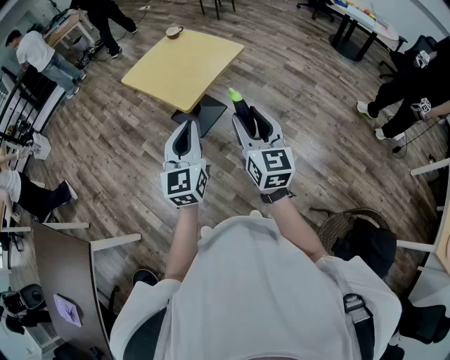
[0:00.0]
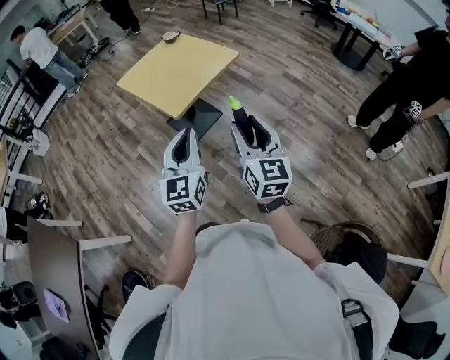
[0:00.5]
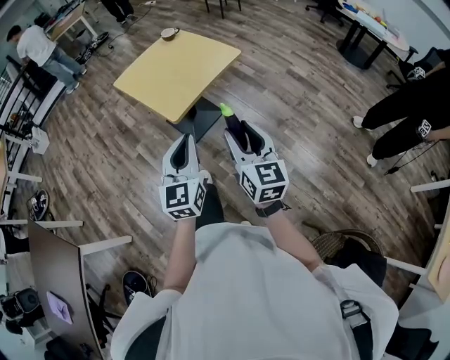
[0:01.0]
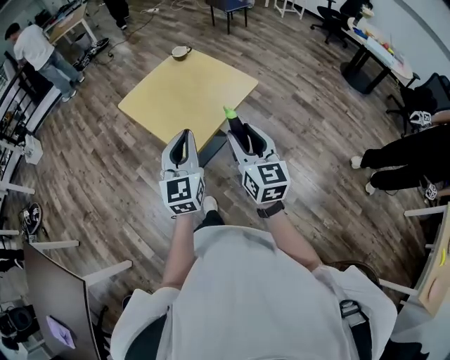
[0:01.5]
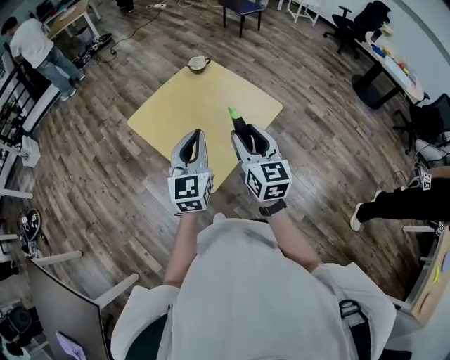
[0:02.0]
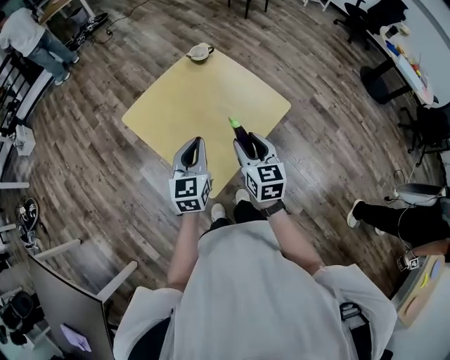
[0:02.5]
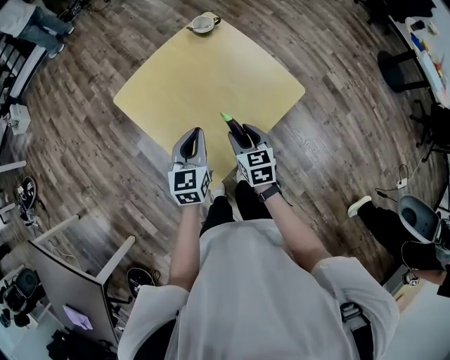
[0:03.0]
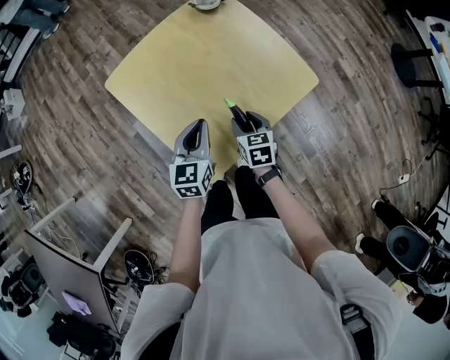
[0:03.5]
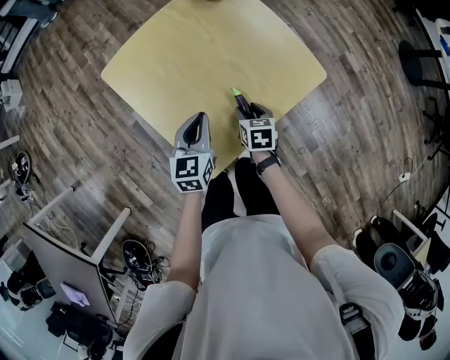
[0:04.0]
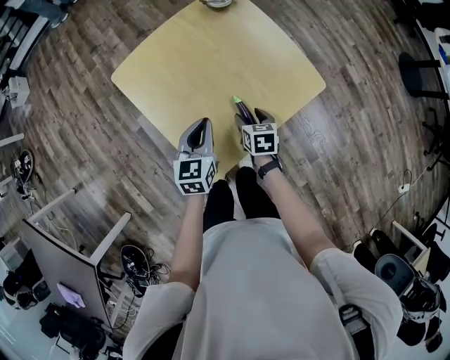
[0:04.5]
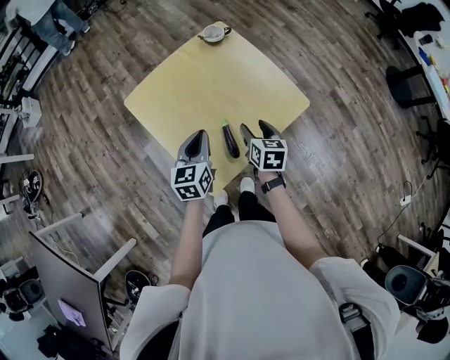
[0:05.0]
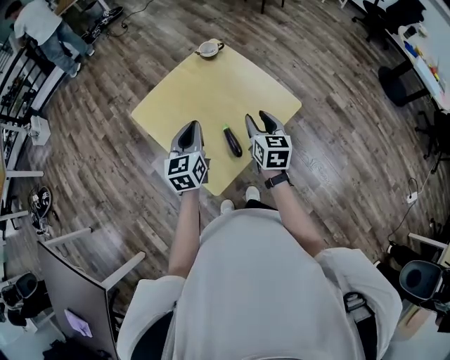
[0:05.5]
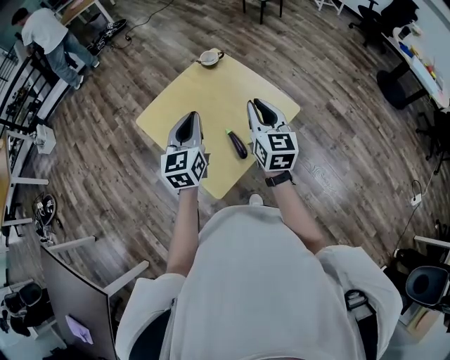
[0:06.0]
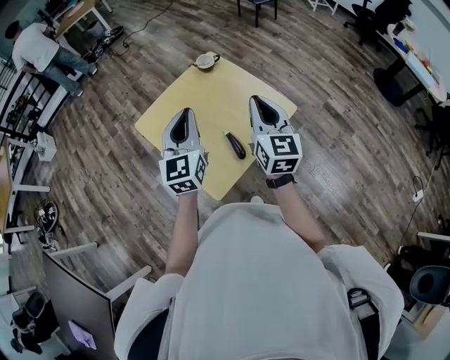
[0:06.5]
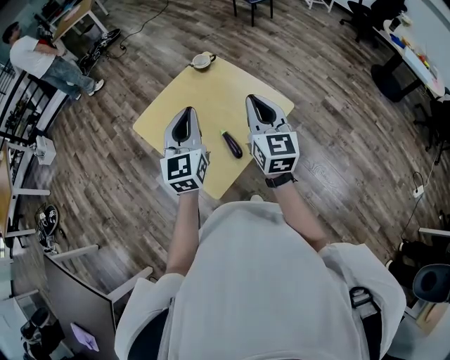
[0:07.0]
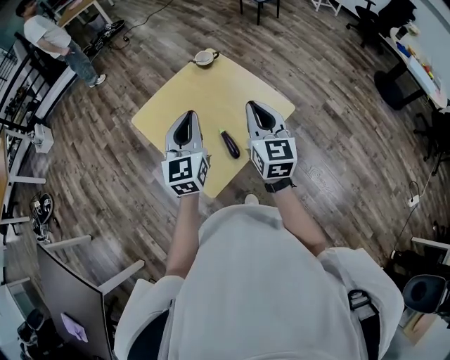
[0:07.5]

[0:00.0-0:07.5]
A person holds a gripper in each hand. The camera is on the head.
0:00.0 to 0:02.0: The pair of grippers is taken forward, approximately 40 cm.
0:02.0 to 0:04.0: The right gripper heads downward, covering approximately 35 cm, and angles its fingers downward, by some 50 degrees; the left gripper goes approximately 25 cm downward and forward, and changes its angle by some 30 degrees.
0:04.0 to 0:05.5: The left gripper goes about 15 cm upward, while the right gripper heads upward, covering approximately 25 cm, and angles its fingers upward, by about 30 degrees.
0:05.5 to 0:07.5: The grippers both shift upward by approximately 10 cm. The right gripper turns by about 20 degrees, and closes.

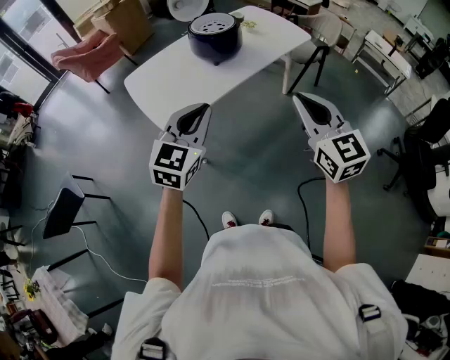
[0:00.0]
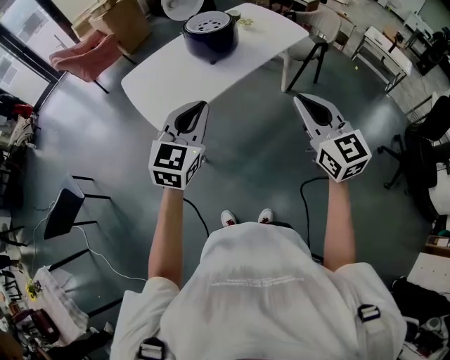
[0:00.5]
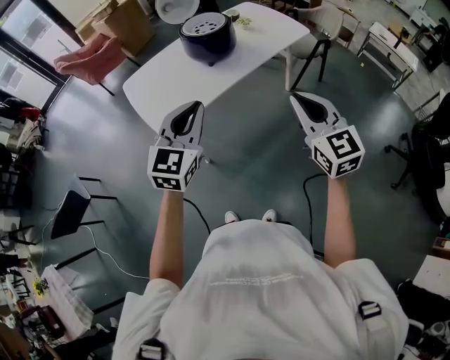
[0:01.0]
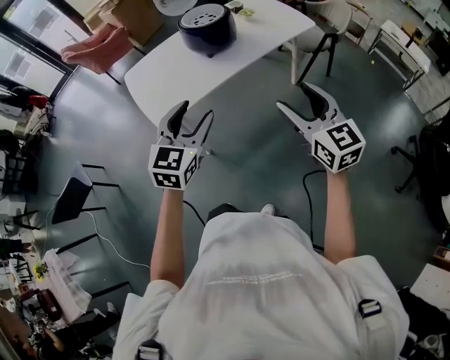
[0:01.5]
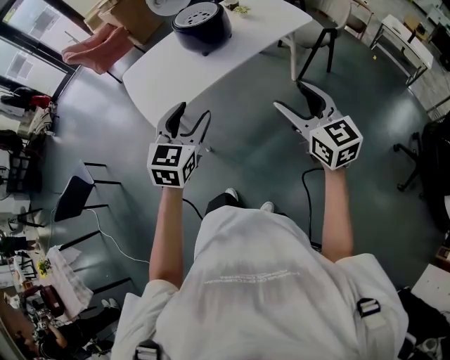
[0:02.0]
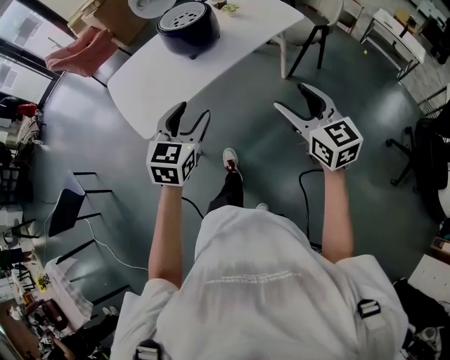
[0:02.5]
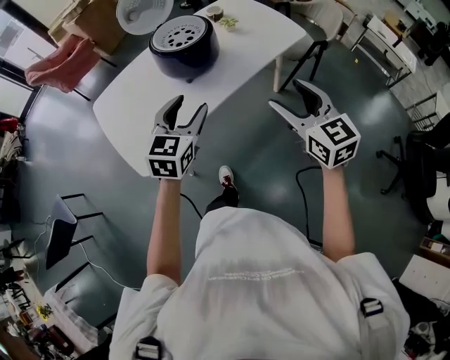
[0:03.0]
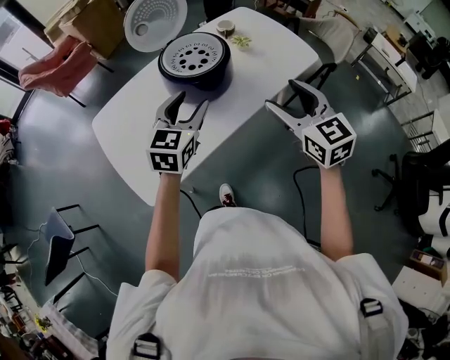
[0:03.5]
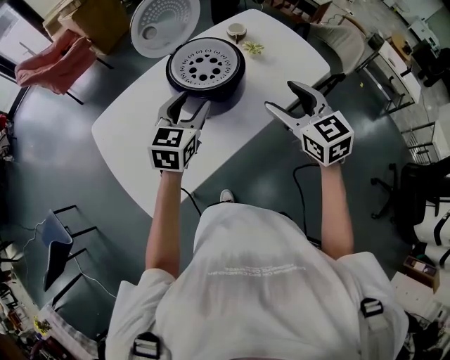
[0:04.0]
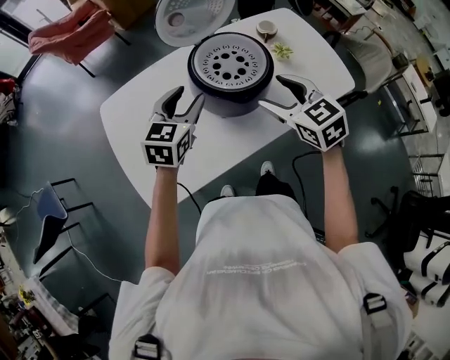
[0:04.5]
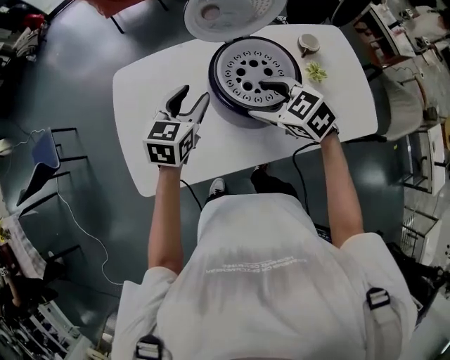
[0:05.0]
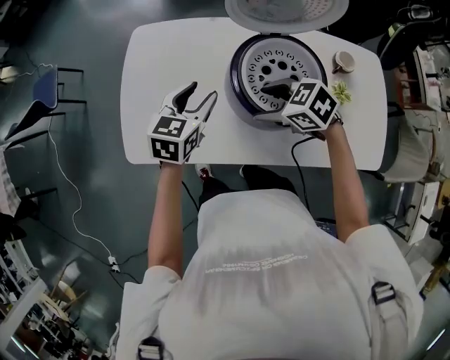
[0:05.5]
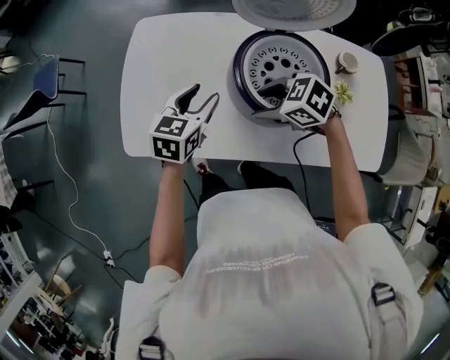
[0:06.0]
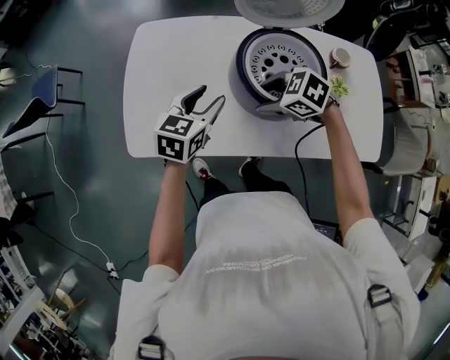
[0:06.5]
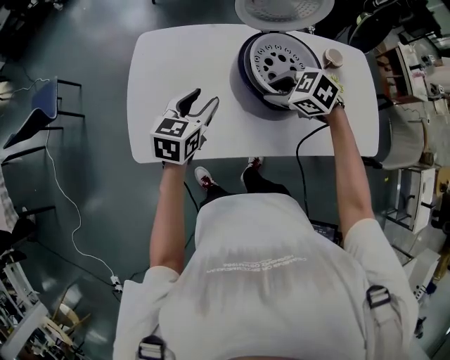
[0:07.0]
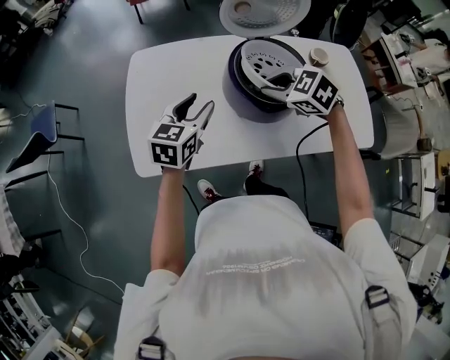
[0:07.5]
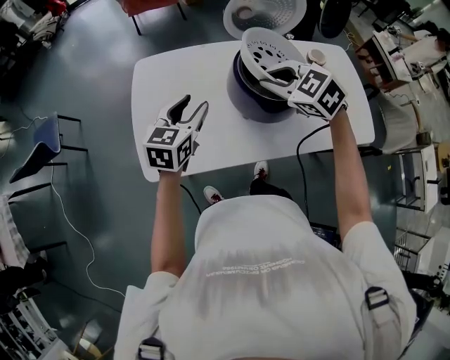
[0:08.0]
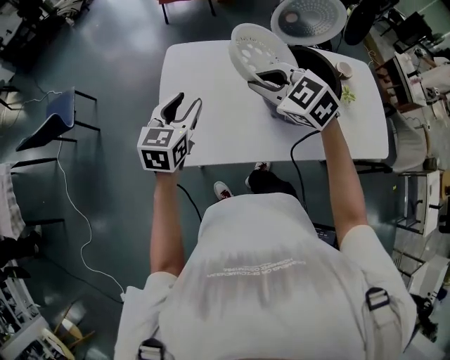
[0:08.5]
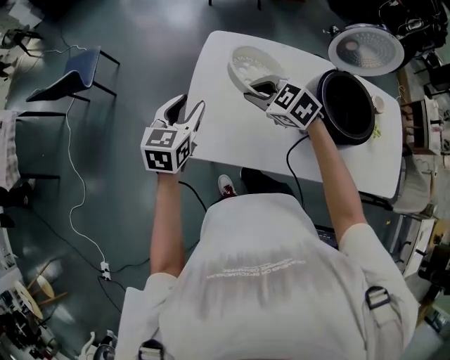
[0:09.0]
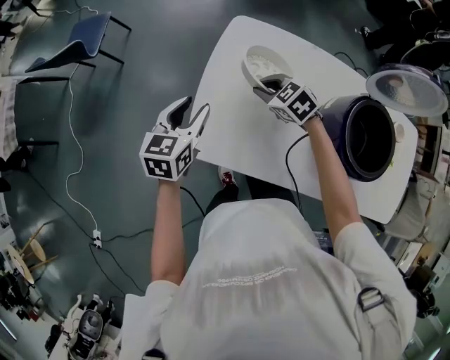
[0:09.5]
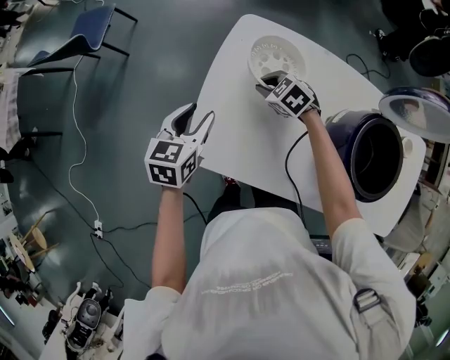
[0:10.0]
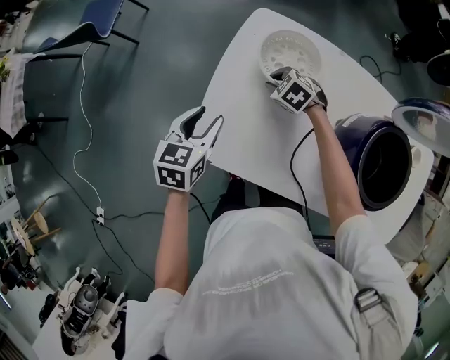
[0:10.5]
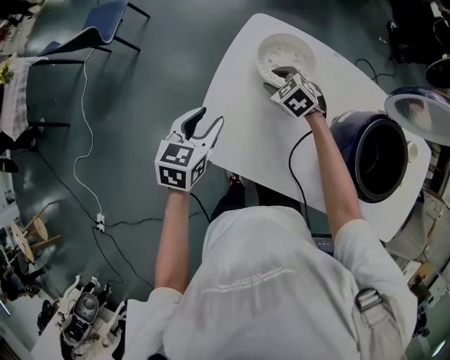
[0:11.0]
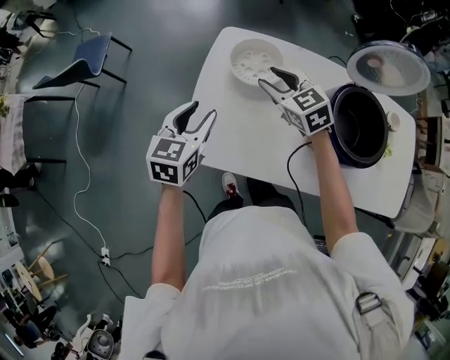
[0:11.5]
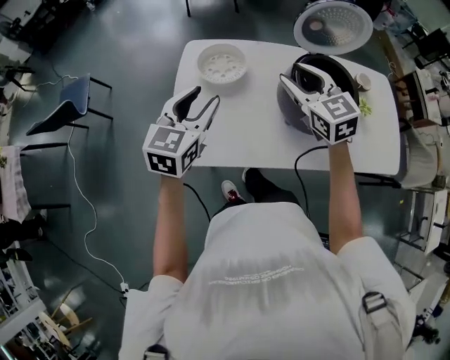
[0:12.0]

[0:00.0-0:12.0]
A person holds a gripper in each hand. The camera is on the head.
0:00.0 to 0:02.0: Both grippers travel together to the right and downward, approximately 15 cm. The left gripper opens up. The right gripper opens up.
0:02.0 to 0:04.0: The two grippers travel together, forward, approximately 40 cm.
0:04.0 to 0:06.0: The right gripper ends up some 25 cm from where it was, and turns by approximately 90 degrees; the left gripper heads downward, covering approximately 10 cm, and swivels about 40 degrees.
0:06.0 to 0:08.0: The left gripper is displaced upward by roughly 5 cm, while the right gripper is displaced upward by roughly 15 cm, changes its angle by approximately 40 degrees, and closes its fingers.
0:08.0 to 0:10.0: The left gripper ends up about 25 cm from where it was, and rotates roughly 30 degrees. Meanwhile the right gripper ends up about 40 cm from where it was, and turns by approximately 30 degrees.
0:10.0 to 0:12.0: The left gripper heads upward, covering roughly 15 cm, and turns by some 30 degrees. Meanwhile the right gripper is displaced upward by approximately 30 cm, angles its fingers upward, by roughly 30 degrees, and opens its fingers.

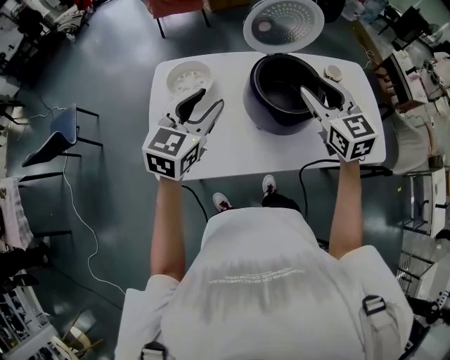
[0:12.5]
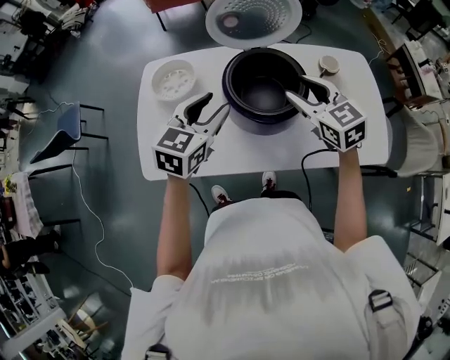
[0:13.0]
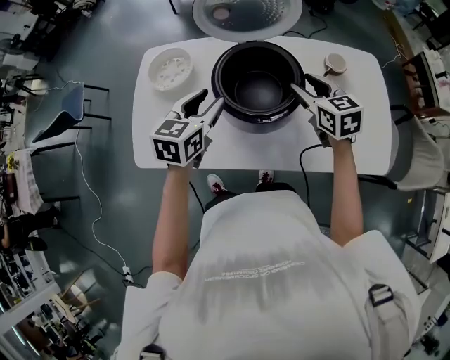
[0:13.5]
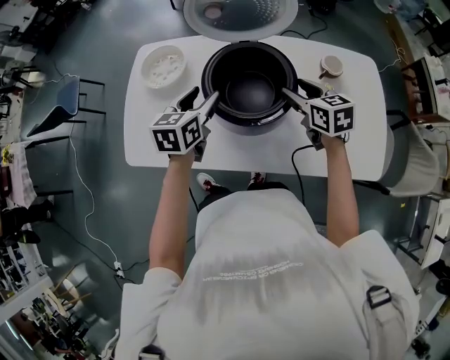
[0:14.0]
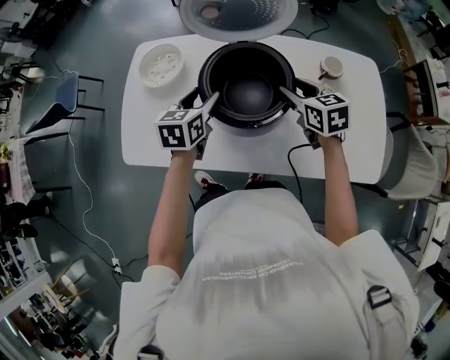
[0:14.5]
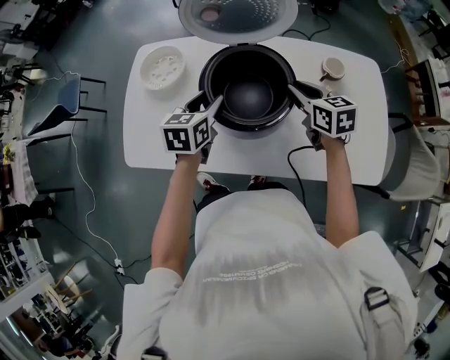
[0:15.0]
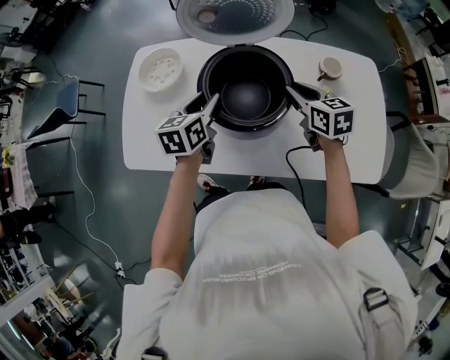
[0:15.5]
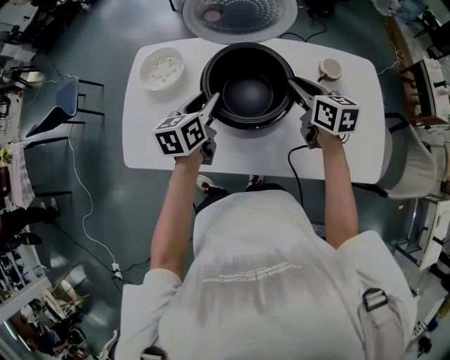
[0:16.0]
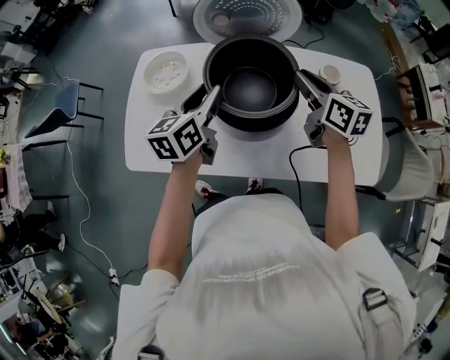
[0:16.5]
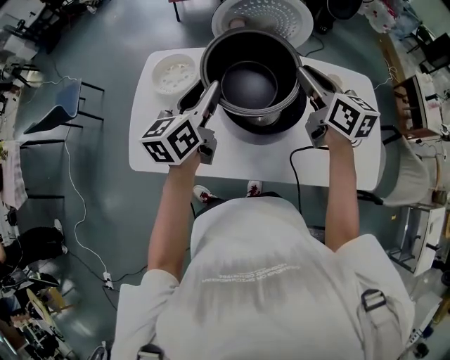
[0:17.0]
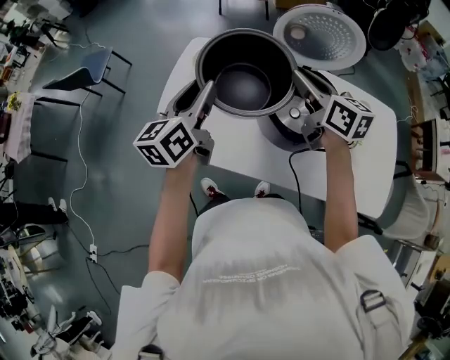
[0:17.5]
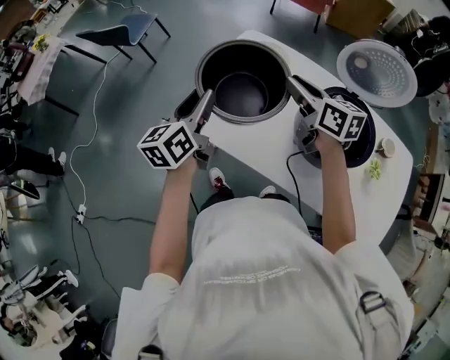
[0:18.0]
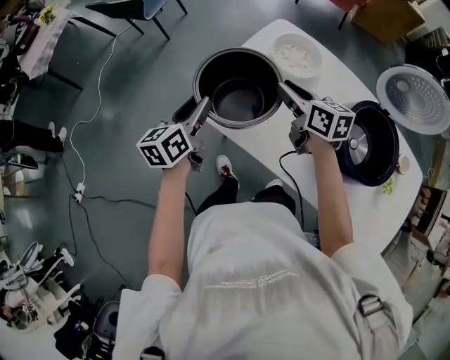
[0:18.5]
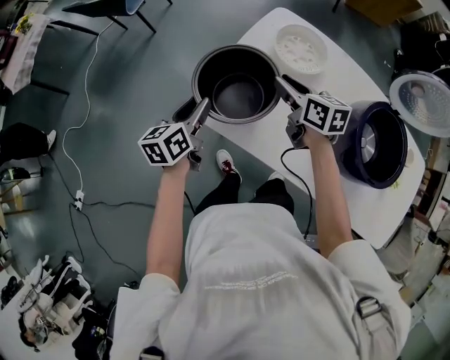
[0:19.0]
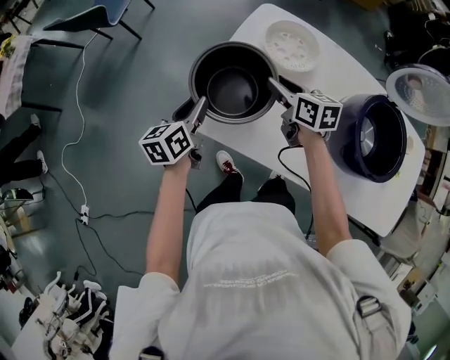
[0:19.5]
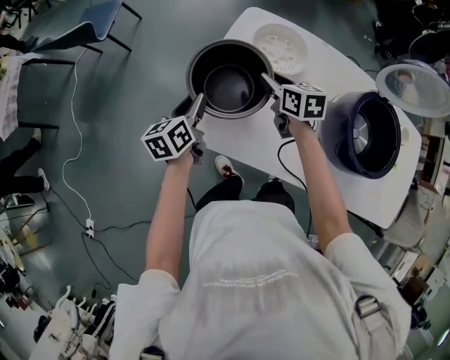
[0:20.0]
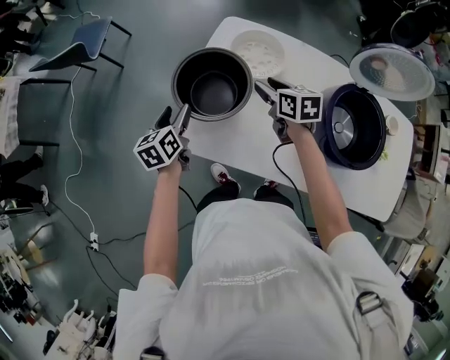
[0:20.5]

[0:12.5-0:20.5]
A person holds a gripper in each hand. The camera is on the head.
0:12.5 to 0:14.5: The grippers both shift downward, to the right and forward by roughly 20 cm. The left gripper turns by about 30 degrees. Meanwhile the right gripper rotates approximately 30 degrees.
0:14.5 to 0:16.5: Both grippers travel together upward, some 10 cm. The left gripper changes its angle by roughly 20 degrees, and closes up. The right gripper turns by approximately 30 degrees, and closes its fingers.
0:16.5 to 0:18.5: The left gripper moves about 40 cm, and swivels about 40 degrees. The right gripper shifts by some 40 cm, and changes its angle by roughly 40 degrees.
0:18.5 to 0:20.5: The right gripper is displaced downward, forward and to the right by approximately 10 cm, and turns by some 20 degrees. Meanwhile the left gripper goes some 15 cm forward and downward, and opens.
